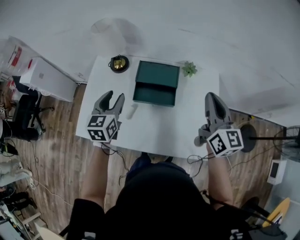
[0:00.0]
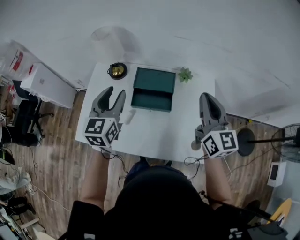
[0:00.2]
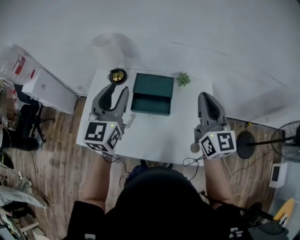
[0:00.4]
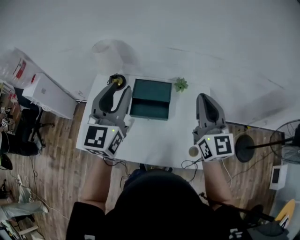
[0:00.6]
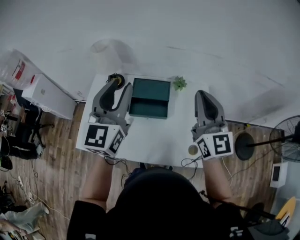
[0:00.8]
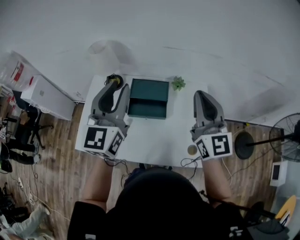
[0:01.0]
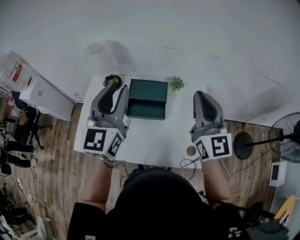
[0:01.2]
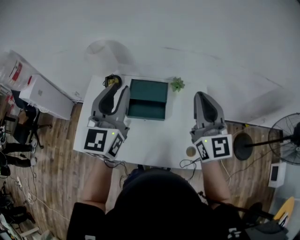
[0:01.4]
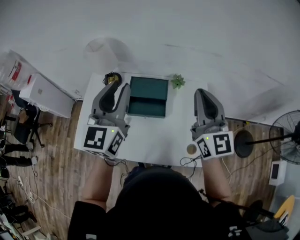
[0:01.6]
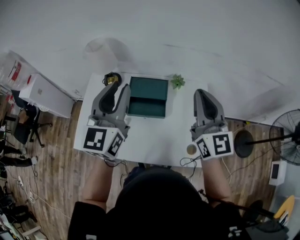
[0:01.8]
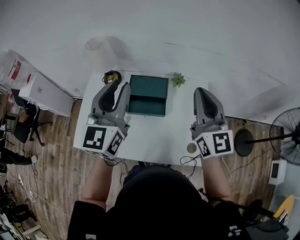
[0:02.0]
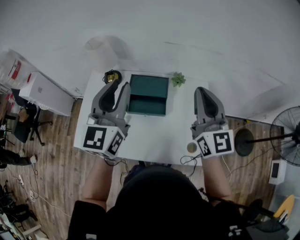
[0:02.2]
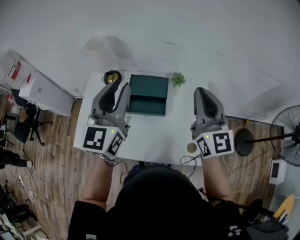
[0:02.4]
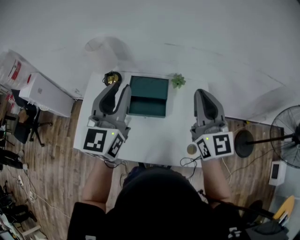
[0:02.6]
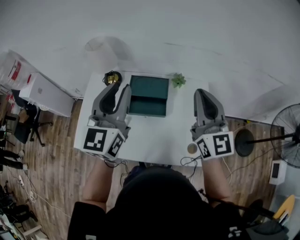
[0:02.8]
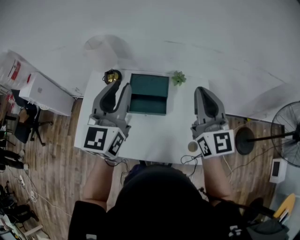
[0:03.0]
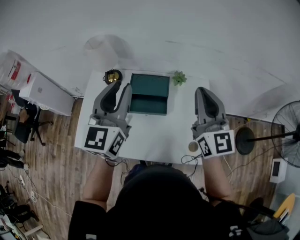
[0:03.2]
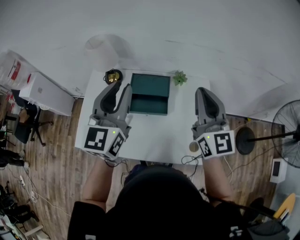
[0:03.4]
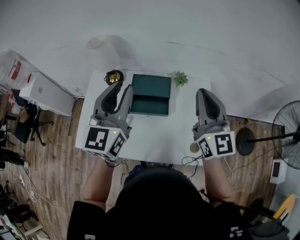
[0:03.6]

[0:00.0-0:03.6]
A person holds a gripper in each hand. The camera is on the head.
0:00.0 to 0:01.8: The right gripper heads upward, covering roughly 10 cm. Meanwhile the left gripper goes about 25 cm upward and to the right, and changes its angle by approximately 30 degrees.
0:01.8 to 0:03.6: The grippers move only a little.

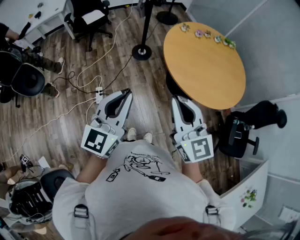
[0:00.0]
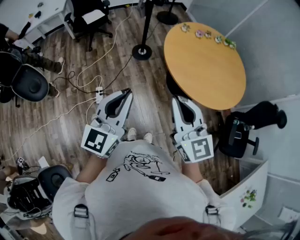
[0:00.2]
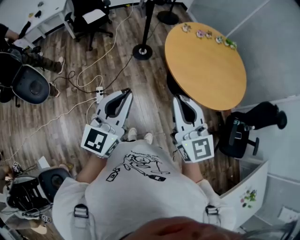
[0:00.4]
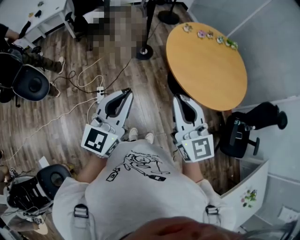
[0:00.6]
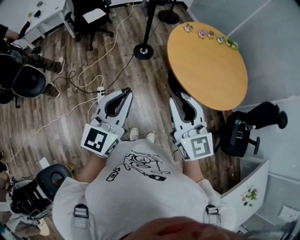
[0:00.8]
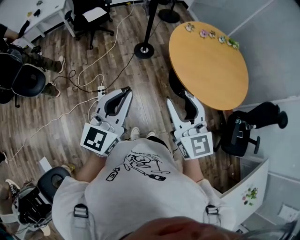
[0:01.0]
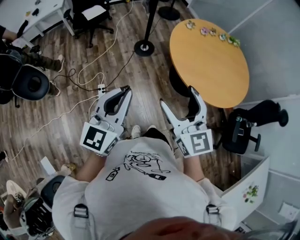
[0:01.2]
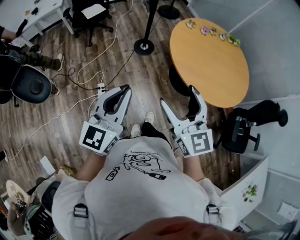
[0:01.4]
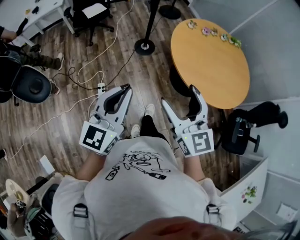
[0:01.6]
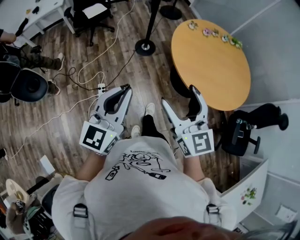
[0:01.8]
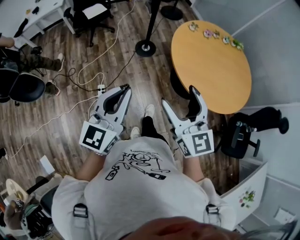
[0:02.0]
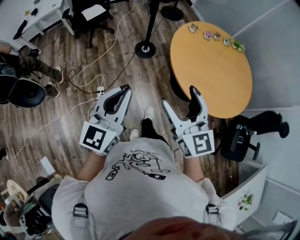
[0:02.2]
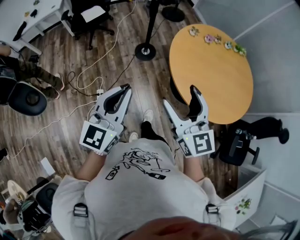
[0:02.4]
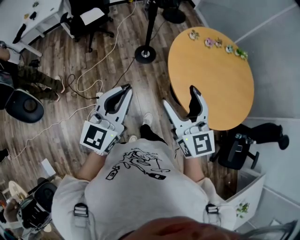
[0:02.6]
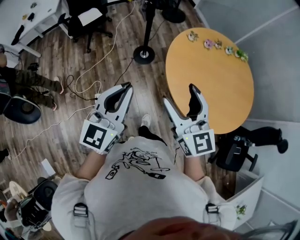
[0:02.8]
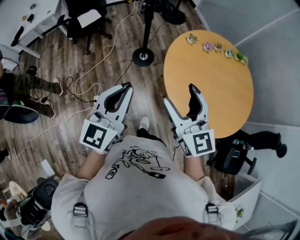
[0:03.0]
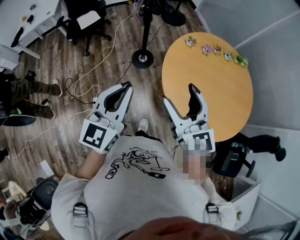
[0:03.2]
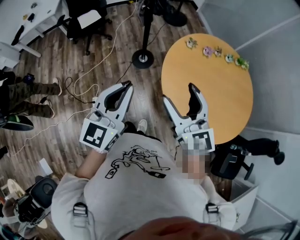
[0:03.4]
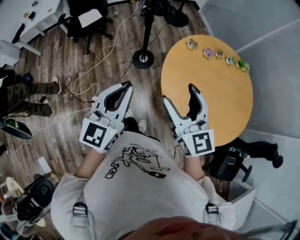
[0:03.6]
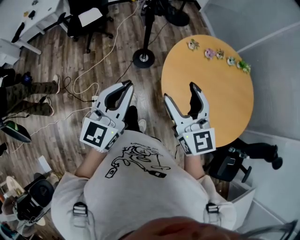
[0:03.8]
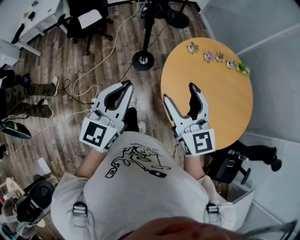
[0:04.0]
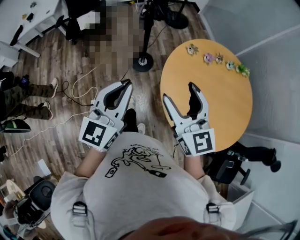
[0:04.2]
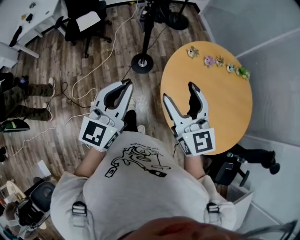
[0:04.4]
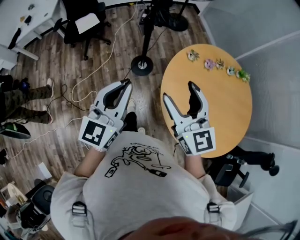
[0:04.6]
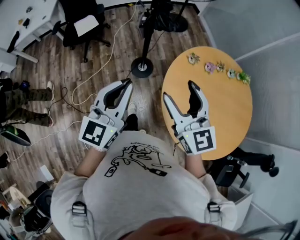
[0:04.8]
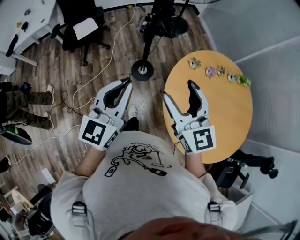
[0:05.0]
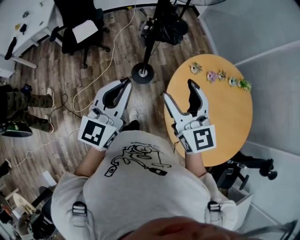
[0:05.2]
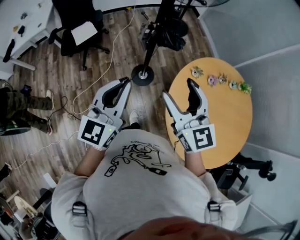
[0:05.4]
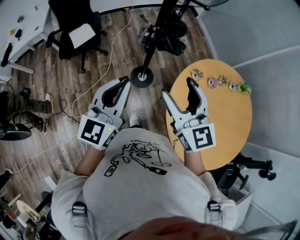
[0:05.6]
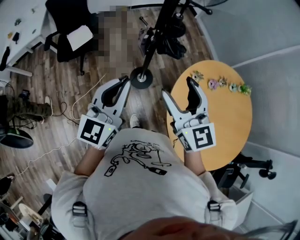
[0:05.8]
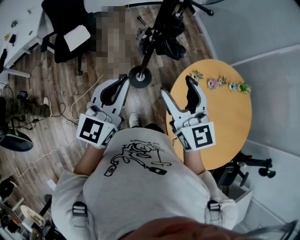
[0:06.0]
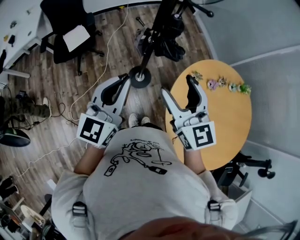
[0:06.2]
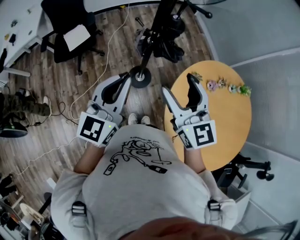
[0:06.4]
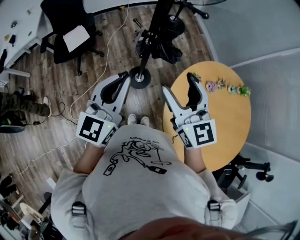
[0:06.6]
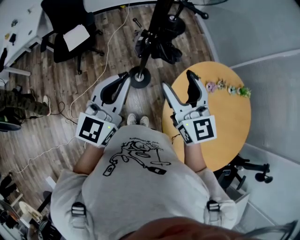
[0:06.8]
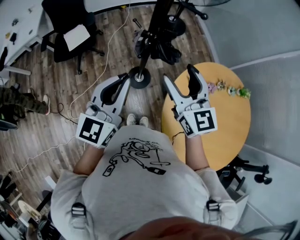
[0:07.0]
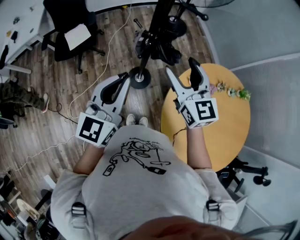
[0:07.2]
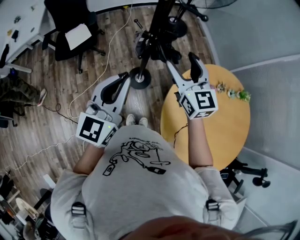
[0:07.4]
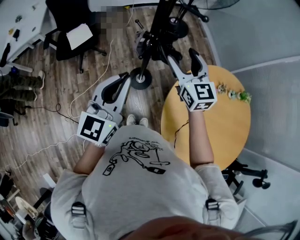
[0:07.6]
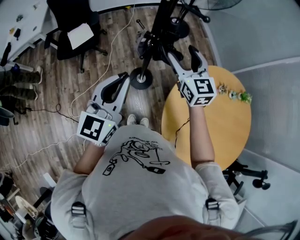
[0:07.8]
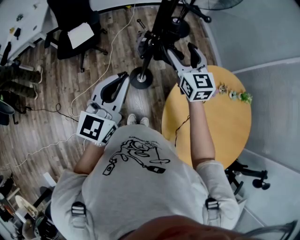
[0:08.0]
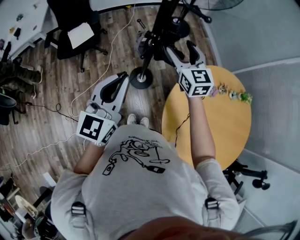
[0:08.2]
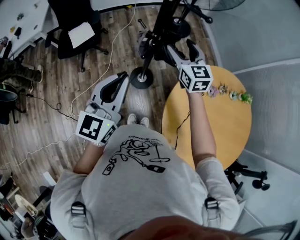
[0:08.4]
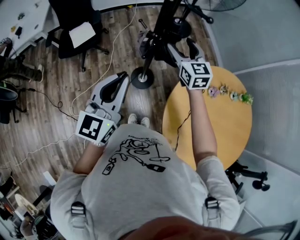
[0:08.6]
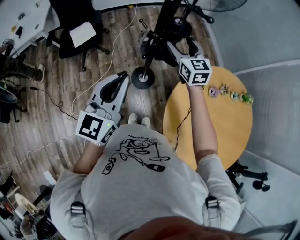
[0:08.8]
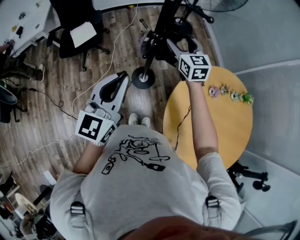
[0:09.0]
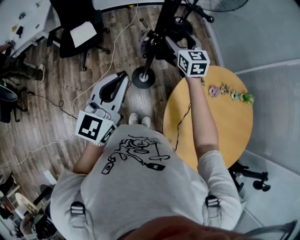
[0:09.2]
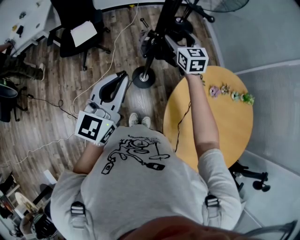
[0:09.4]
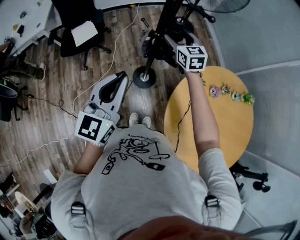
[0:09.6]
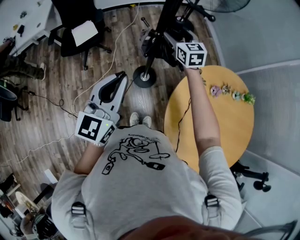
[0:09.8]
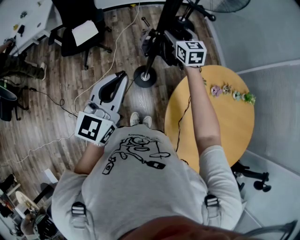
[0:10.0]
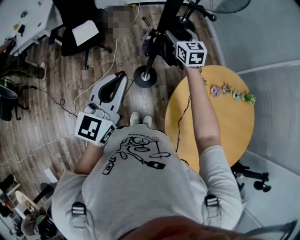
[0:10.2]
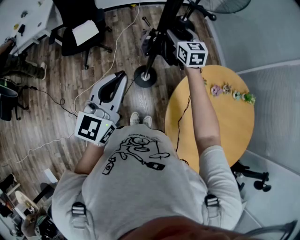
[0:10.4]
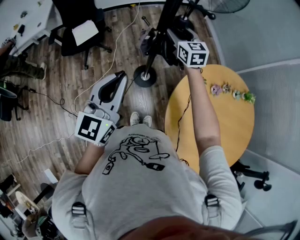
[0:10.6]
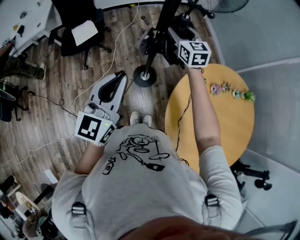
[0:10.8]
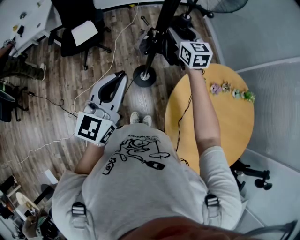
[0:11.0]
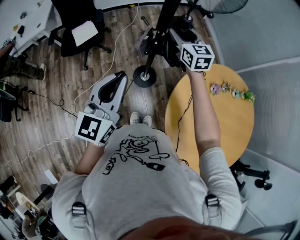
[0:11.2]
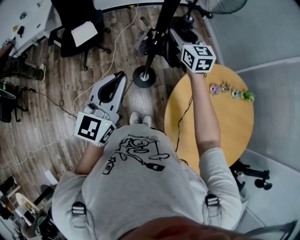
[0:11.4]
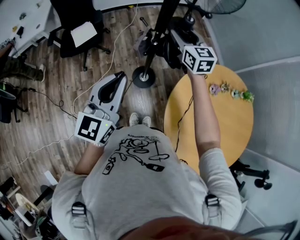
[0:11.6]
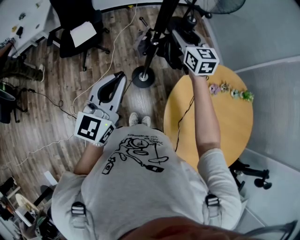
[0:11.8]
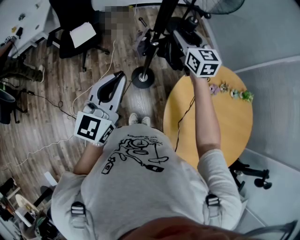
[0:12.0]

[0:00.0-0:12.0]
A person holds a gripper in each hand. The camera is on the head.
0:00.0 to 0:01.6: The right gripper moves to the left and forward, roughly 10 cm, and opens up. The left gripper is displaced to the left by about 5 cm.
0:01.6 to 0:03.0: Both grippers move forward, about 25 cm.
0:03.0 to 0:04.4: Both grippers travel together forward, roughly 10 cm.
0:04.4 to 0:06.0: The two grippers go roughly 25 cm forward.
0:06.0 to 0:07.6: The left gripper moves roughly 5 cm; the right gripper goes approximately 15 cm forward.
0:07.6 to 0:09.0: The right gripper is displaced forward and downward by about 10 cm.
0:09.0 to 0:10.4: The grippers make only small movements.
0:10.4 to 0:12.0: The right gripper heads upward, covering roughly 5 cm.

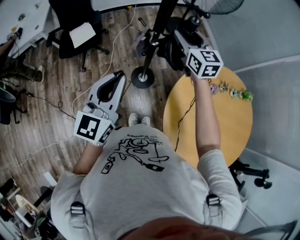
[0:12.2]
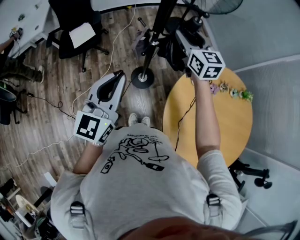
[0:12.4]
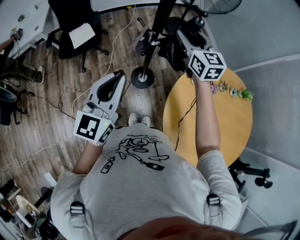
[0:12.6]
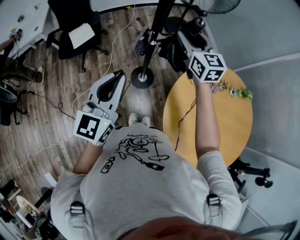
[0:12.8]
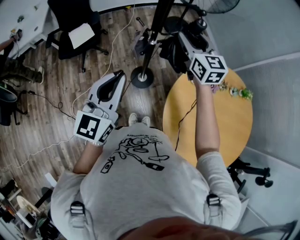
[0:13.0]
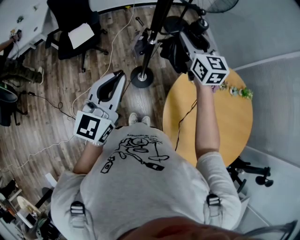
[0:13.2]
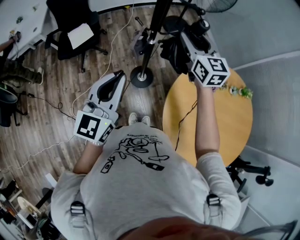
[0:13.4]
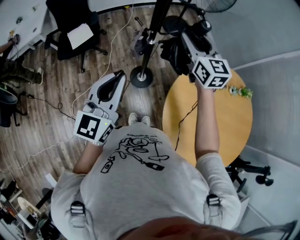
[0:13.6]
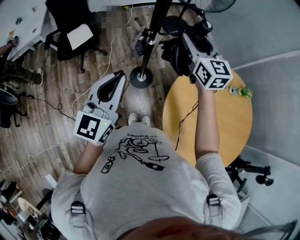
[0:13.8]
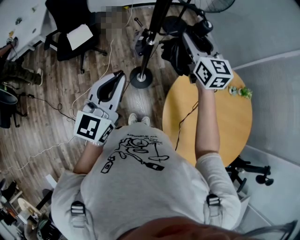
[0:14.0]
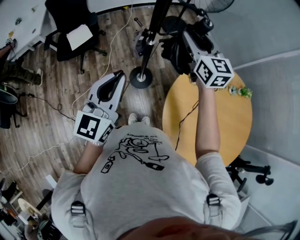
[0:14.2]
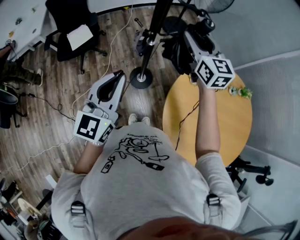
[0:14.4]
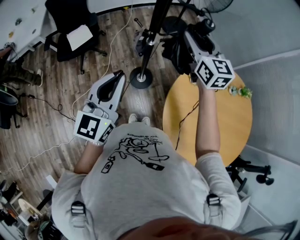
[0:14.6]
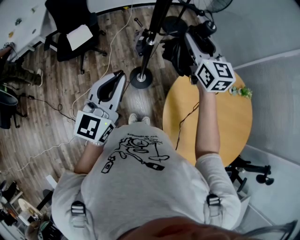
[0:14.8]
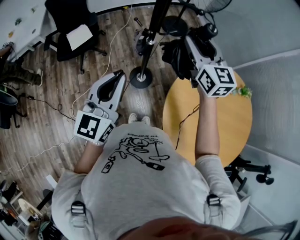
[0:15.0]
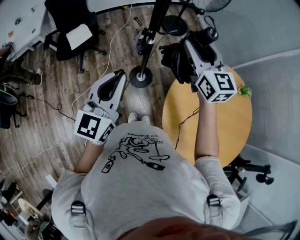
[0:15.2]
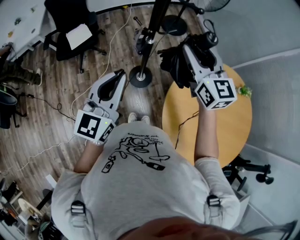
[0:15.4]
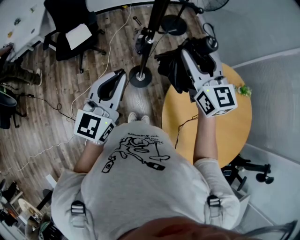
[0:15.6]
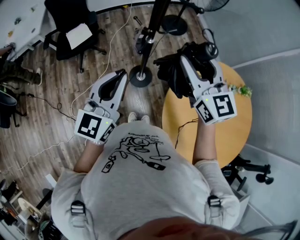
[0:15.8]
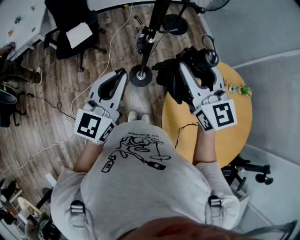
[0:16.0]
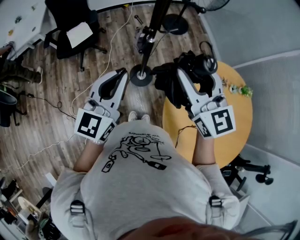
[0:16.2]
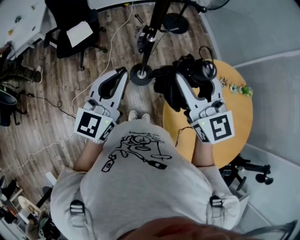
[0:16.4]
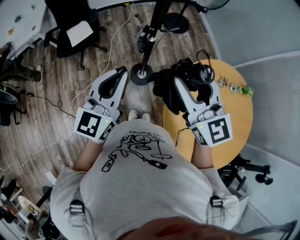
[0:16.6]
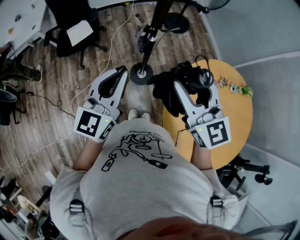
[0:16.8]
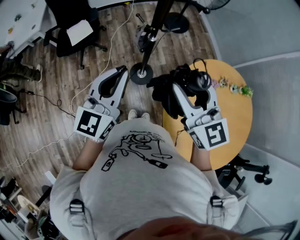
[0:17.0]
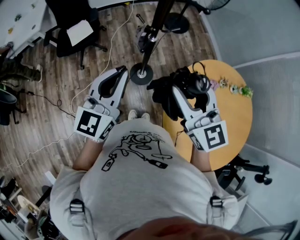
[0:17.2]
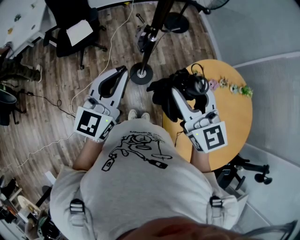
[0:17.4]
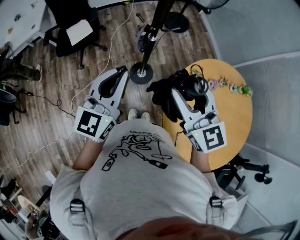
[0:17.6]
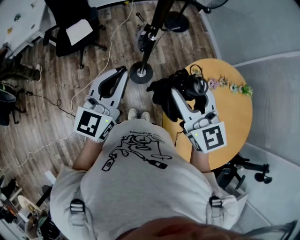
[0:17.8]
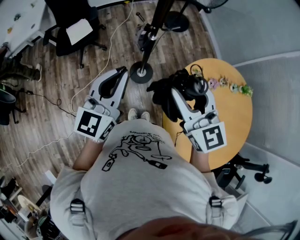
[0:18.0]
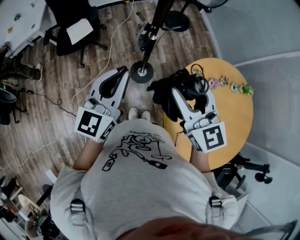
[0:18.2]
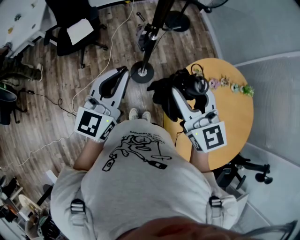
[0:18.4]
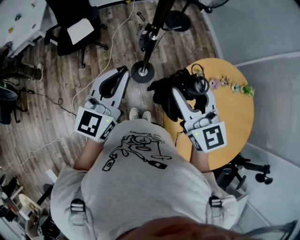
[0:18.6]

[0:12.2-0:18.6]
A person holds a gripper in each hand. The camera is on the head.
0:12.2 to 0:13.8: The right gripper shifts by about 5 cm.
0:13.8 to 0:15.4: The right gripper heads backward, covering some 5 cm.
0:15.4 to 0:17.0: The right gripper travels backward by about 10 cm.
0:17.0 to 0:18.6: There are only small adjustments of the grippers.

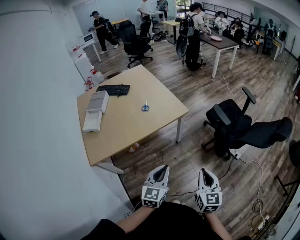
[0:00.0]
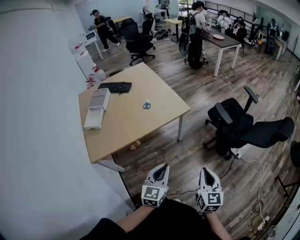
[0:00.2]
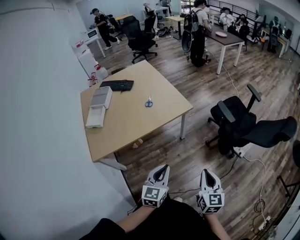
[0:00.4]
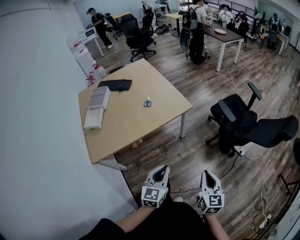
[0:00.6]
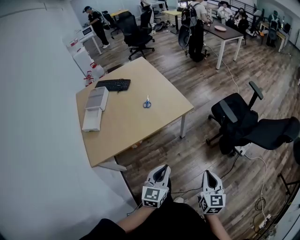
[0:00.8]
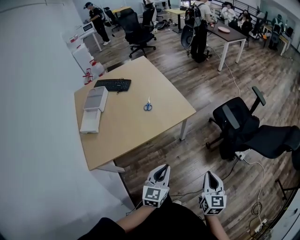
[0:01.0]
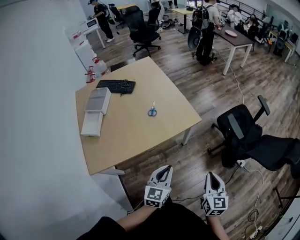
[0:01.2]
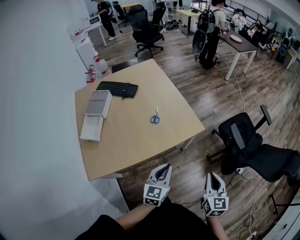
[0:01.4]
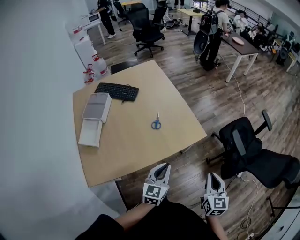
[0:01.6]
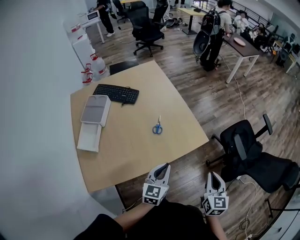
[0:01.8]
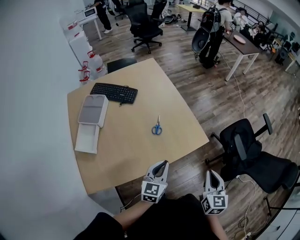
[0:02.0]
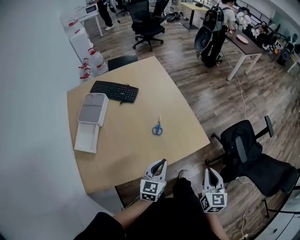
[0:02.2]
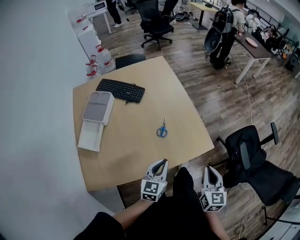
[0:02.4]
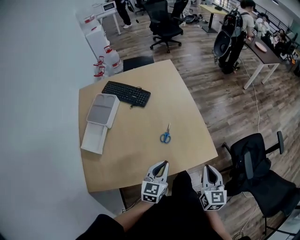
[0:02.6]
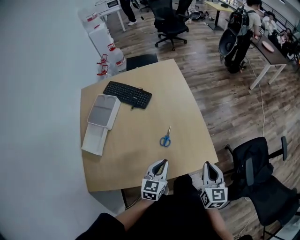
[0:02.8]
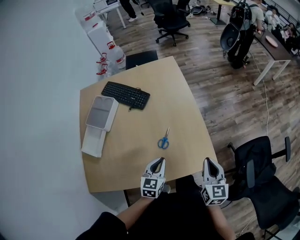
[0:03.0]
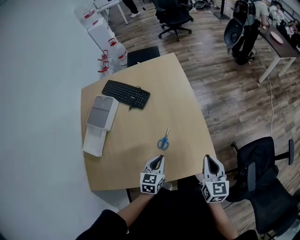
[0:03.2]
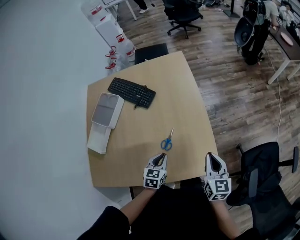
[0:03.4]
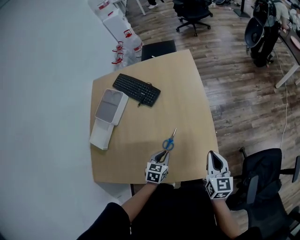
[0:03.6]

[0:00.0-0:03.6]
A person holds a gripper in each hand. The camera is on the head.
0:00.0 to 0:01.8: The left gripper goes some 35 cm forward and to the left; the right gripper heads forward, covering roughly 30 cm.
0:01.8 to 0:03.6: The left gripper shifts by approximately 30 cm, and turns by about 40 degrees. The right gripper ends up about 35 cm from where it was, and turns by roughly 30 degrees.
